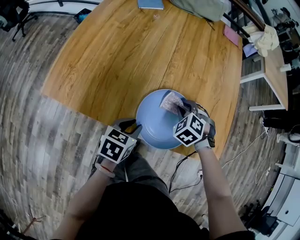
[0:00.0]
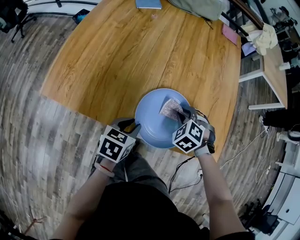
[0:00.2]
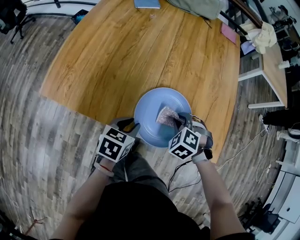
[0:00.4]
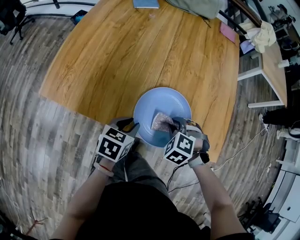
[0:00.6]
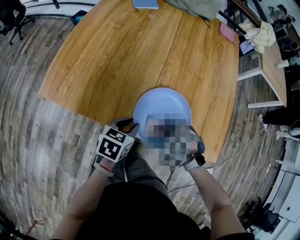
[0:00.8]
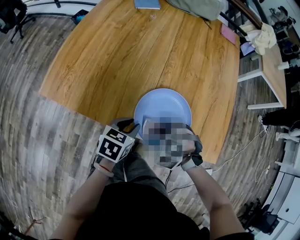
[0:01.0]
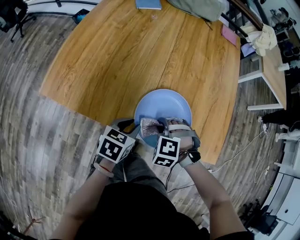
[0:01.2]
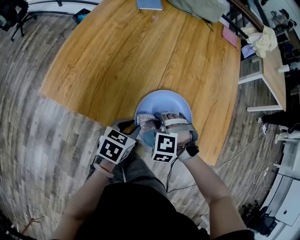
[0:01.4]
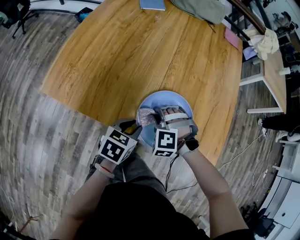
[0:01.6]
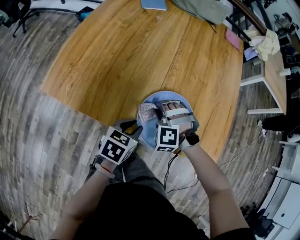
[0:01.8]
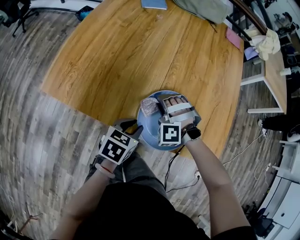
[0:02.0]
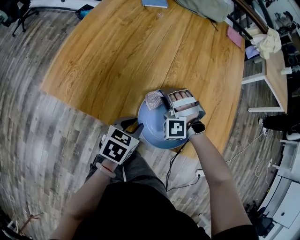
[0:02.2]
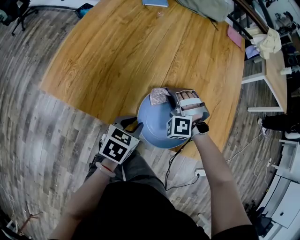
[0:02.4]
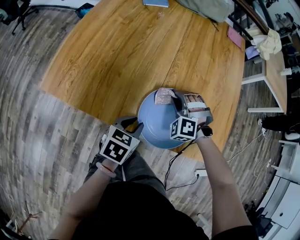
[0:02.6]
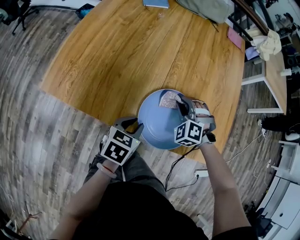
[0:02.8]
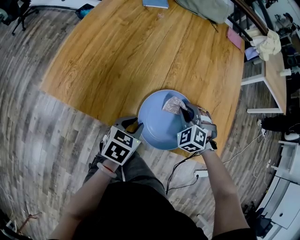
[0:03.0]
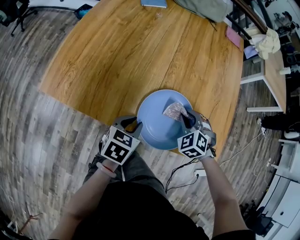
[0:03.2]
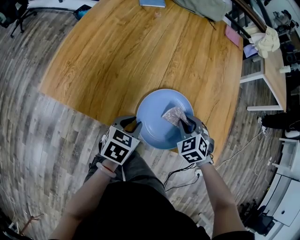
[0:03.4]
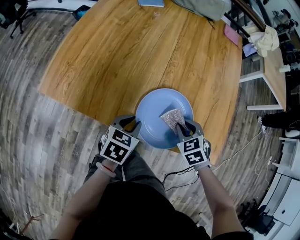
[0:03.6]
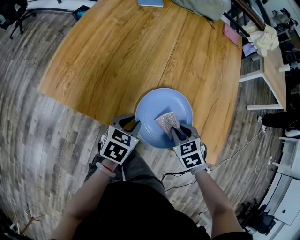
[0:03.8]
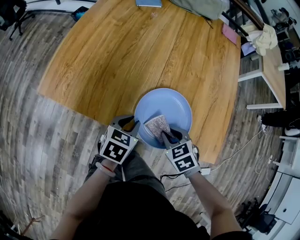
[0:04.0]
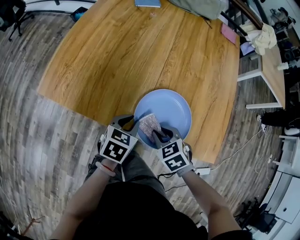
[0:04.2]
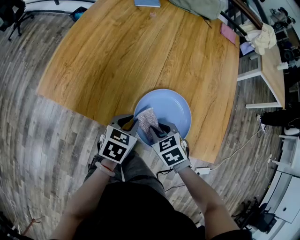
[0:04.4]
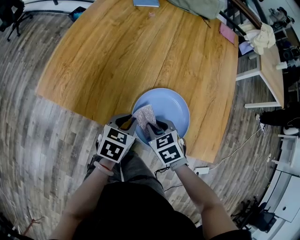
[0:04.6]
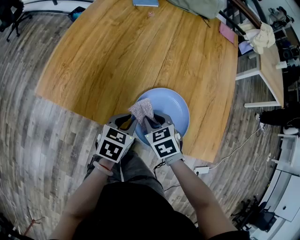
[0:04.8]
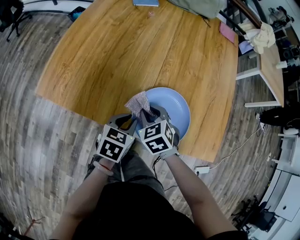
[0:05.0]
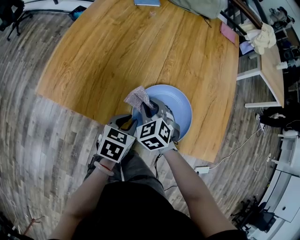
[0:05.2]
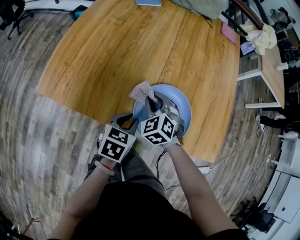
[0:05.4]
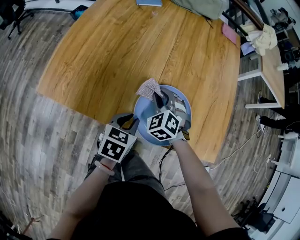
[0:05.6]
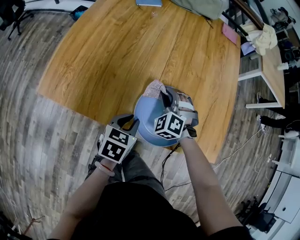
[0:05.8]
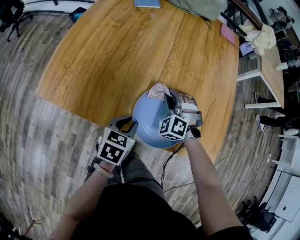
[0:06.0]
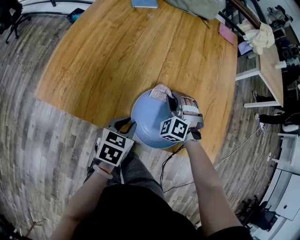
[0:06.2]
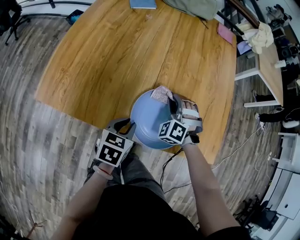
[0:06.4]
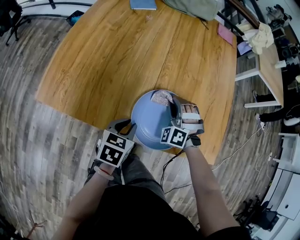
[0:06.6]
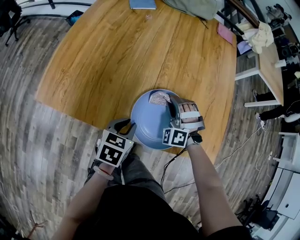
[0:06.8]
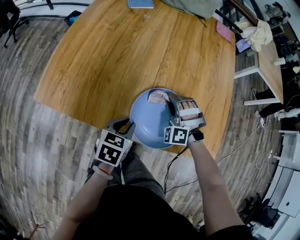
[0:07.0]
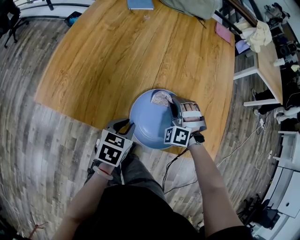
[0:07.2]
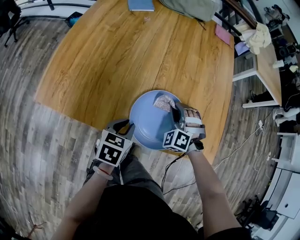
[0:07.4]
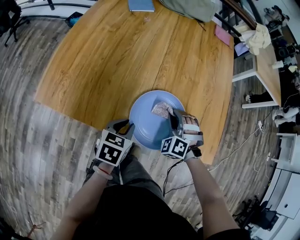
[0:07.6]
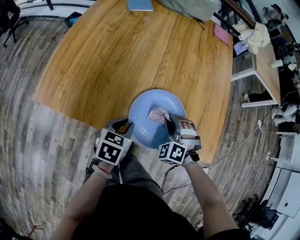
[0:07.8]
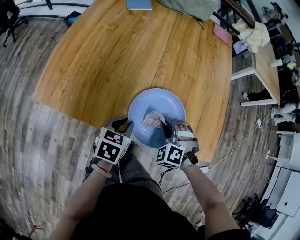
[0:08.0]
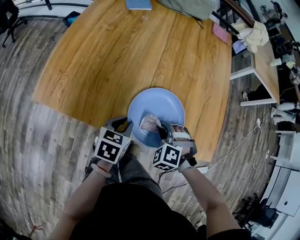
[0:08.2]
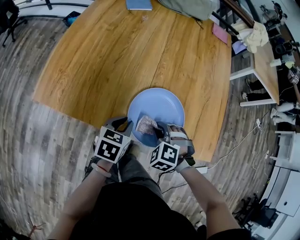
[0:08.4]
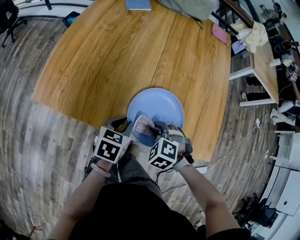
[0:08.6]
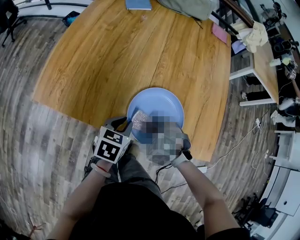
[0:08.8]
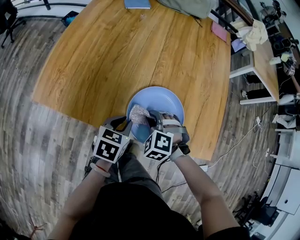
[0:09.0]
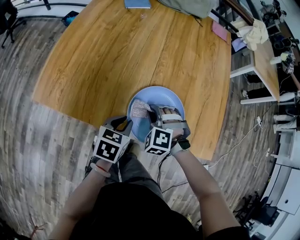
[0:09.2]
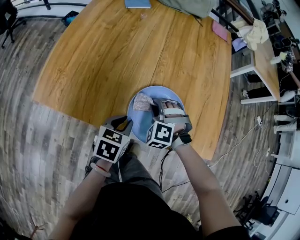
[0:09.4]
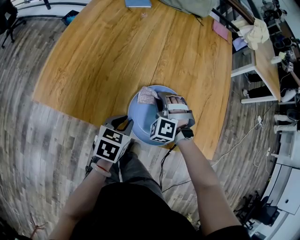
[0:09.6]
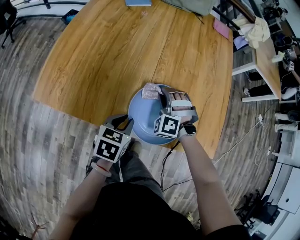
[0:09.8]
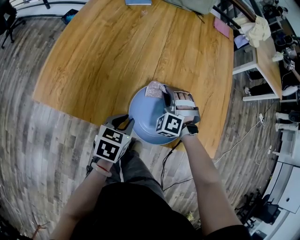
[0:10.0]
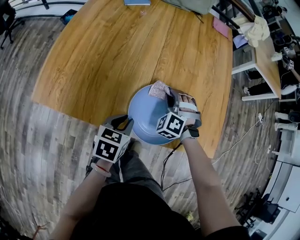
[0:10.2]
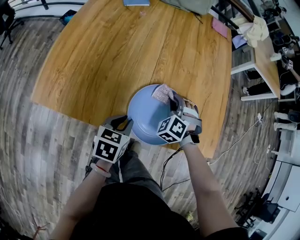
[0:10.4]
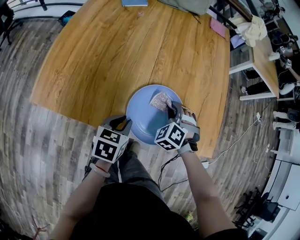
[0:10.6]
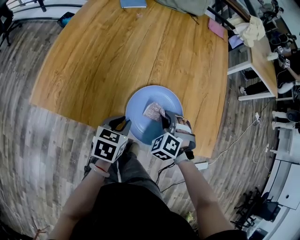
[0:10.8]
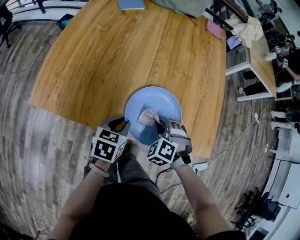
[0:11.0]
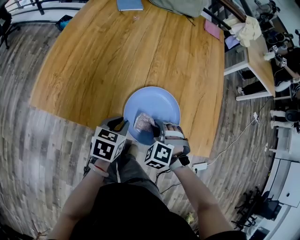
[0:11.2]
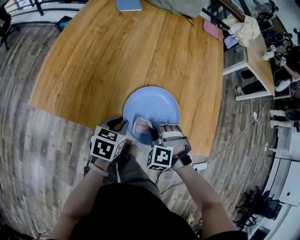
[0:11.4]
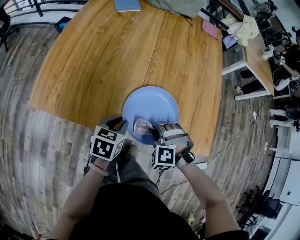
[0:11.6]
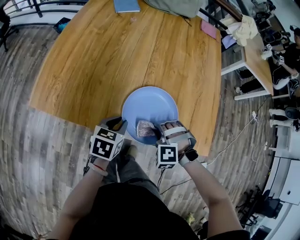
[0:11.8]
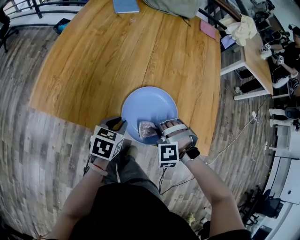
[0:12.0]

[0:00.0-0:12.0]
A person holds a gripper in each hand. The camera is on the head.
0.0 to 1.6 s: The right gripper shifts approximately 10 cm to the left and backward, and rotates about 30 degrees.
1.6 to 3.0 s: The right gripper moves to the right and forward, approximately 10 cm, and turns by roughly 20 degrees.
3.0 to 4.4 s: The right gripper travels backward and to the left by approximately 15 cm, and rolls clockwise, seen from behind, by some 40 degrees.
4.4 to 6.0 s: The right gripper moves forward, roughly 15 cm, and rotates around the line of its fingers by some 50 degrees, counterclockwise from behind.
6.0 to 7.6 s: The right gripper heads to the right, covering some 5 cm.
7.6 to 9.0 s: The right gripper is displaced to the left and backward by about 10 cm, and changes its angle by about 20 degrees.
9.0 to 10.4 s: The right gripper is displaced forward and to the right by approximately 10 cm, and turns by roughly 20 degrees.
10.4 to 12.0 s: The right gripper heads backward, covering some 15 cm, and changes its angle by about 40 degrees.

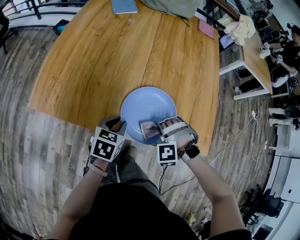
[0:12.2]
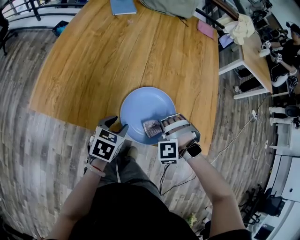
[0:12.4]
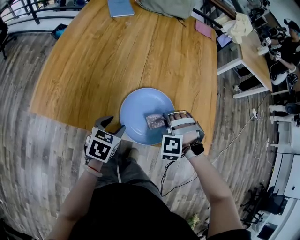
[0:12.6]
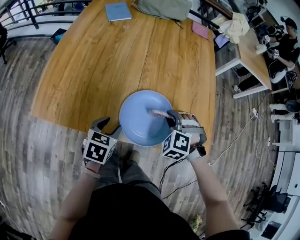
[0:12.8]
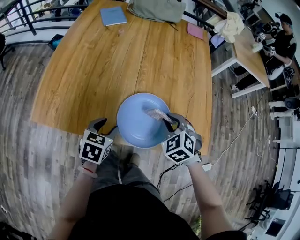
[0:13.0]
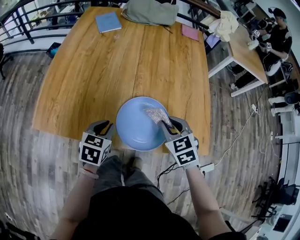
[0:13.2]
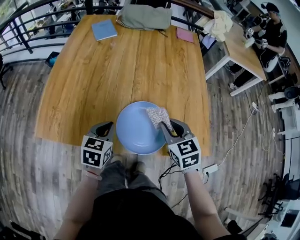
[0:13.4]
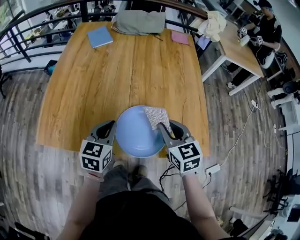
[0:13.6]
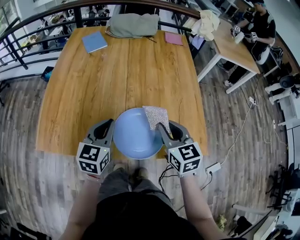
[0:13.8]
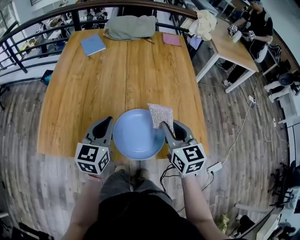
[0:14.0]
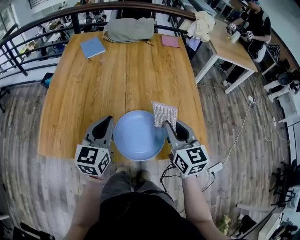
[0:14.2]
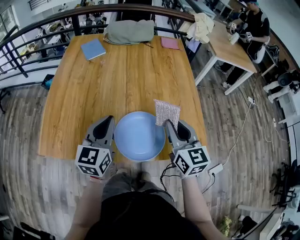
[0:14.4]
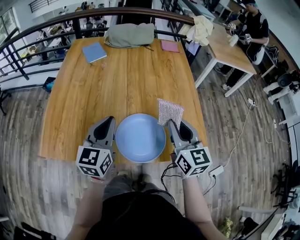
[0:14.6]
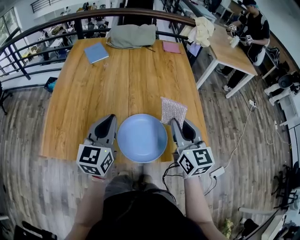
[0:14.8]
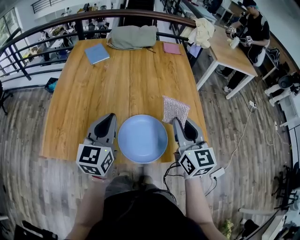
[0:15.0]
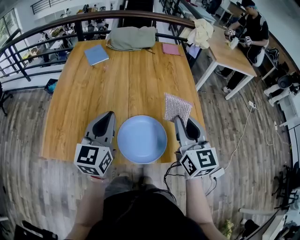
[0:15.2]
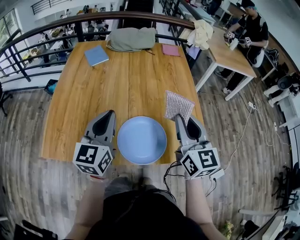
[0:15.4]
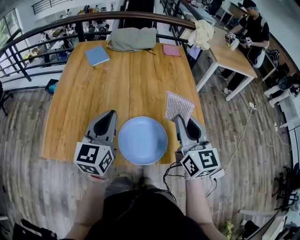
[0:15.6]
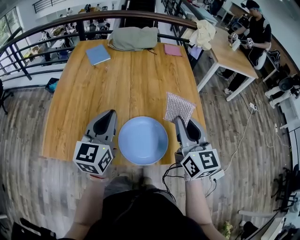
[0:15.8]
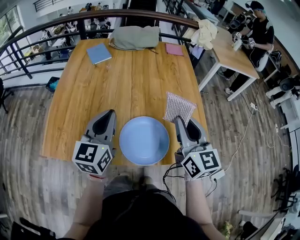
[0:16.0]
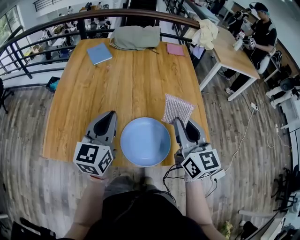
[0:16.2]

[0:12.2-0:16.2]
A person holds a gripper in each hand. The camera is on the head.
12.2 to 13.6 s: The left gripper moves upward and forward, approximately 10 cm, changes its angle by approximately 20 degrees, and opens, then closes once more. Meanwhile the right gripper goes some 15 cm upward, and rotates around the line of its fingers by roughly 90 degrees, clockwise from behind.
13.6 to 14.8 s: Both grippers travel together upward, approximately 10 cm. The left gripper changes its angle by about 20 degrees. Meanwhile the right gripper swivels approximately 20 degrees.
14.8 to 16.2 s: The grippers make only small movements.

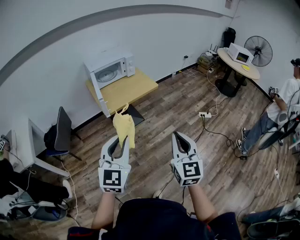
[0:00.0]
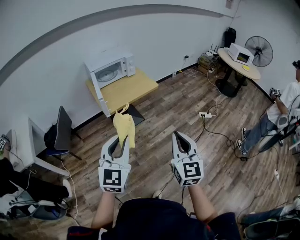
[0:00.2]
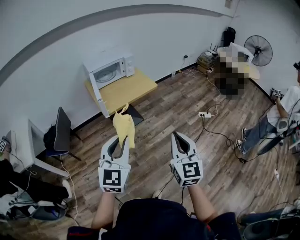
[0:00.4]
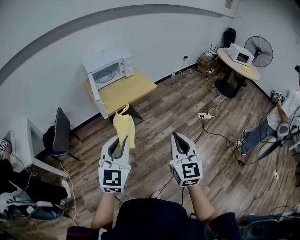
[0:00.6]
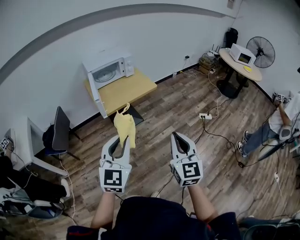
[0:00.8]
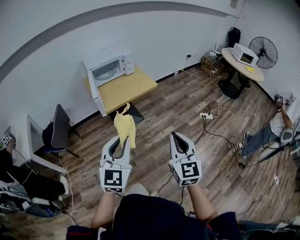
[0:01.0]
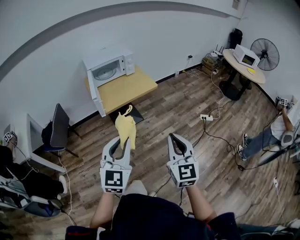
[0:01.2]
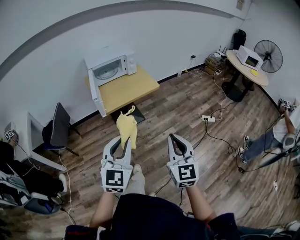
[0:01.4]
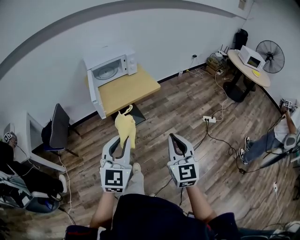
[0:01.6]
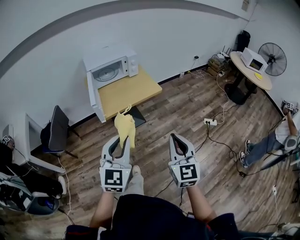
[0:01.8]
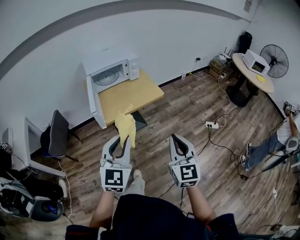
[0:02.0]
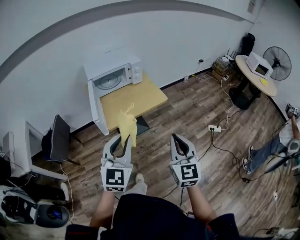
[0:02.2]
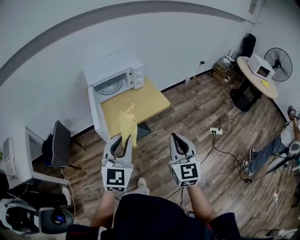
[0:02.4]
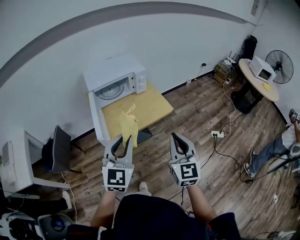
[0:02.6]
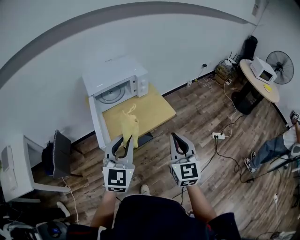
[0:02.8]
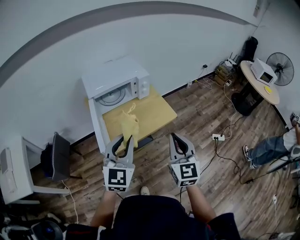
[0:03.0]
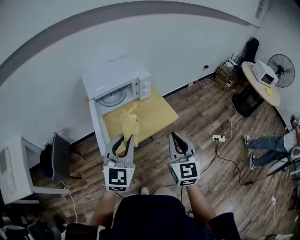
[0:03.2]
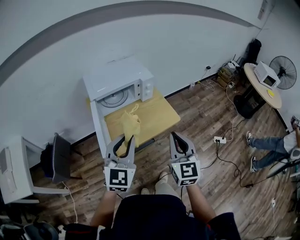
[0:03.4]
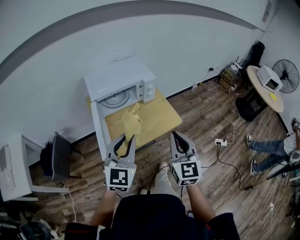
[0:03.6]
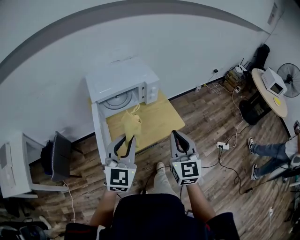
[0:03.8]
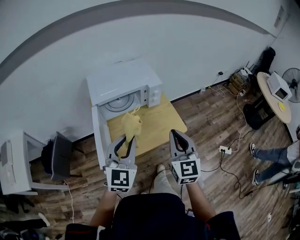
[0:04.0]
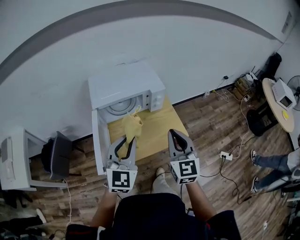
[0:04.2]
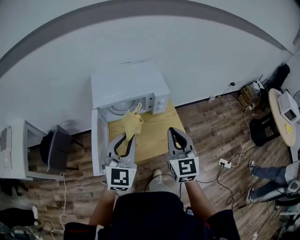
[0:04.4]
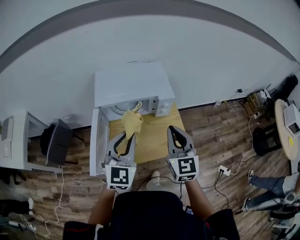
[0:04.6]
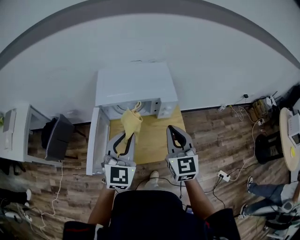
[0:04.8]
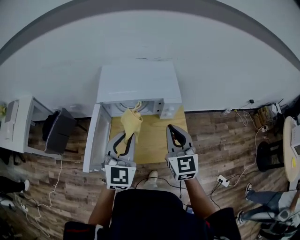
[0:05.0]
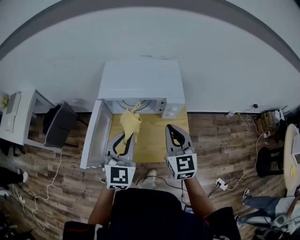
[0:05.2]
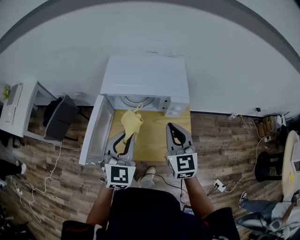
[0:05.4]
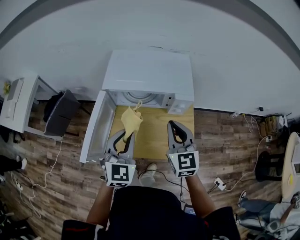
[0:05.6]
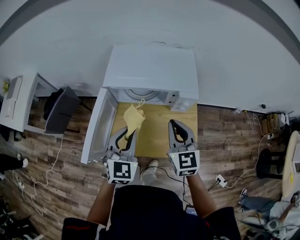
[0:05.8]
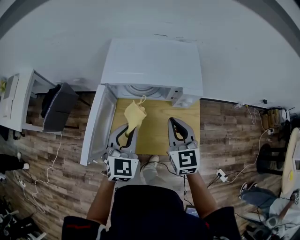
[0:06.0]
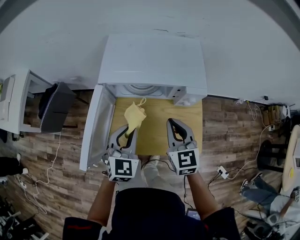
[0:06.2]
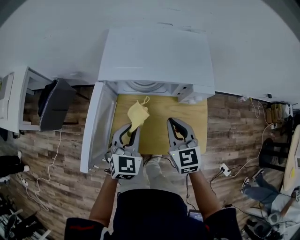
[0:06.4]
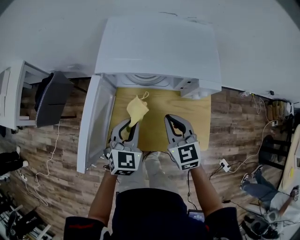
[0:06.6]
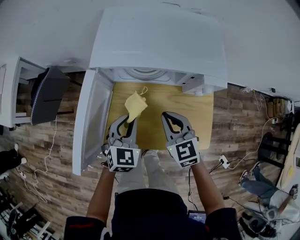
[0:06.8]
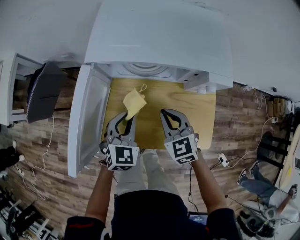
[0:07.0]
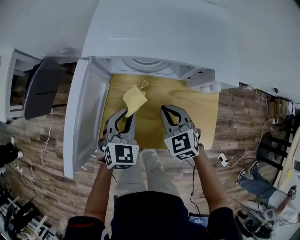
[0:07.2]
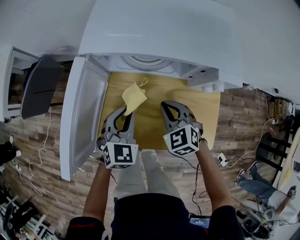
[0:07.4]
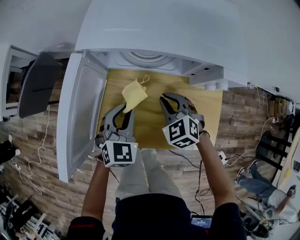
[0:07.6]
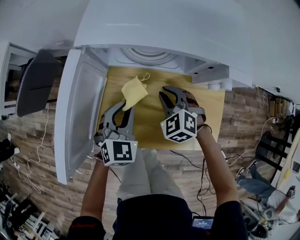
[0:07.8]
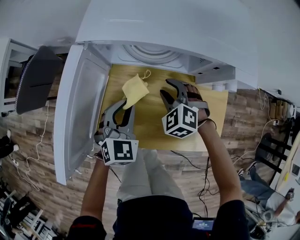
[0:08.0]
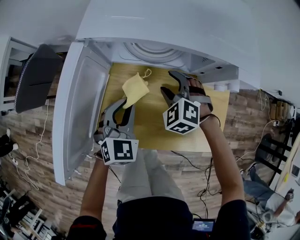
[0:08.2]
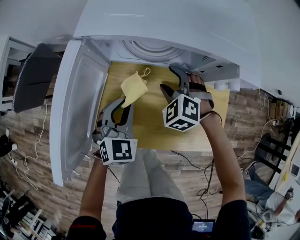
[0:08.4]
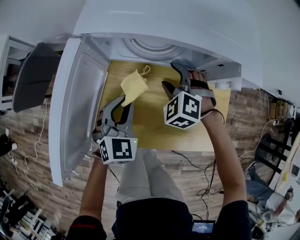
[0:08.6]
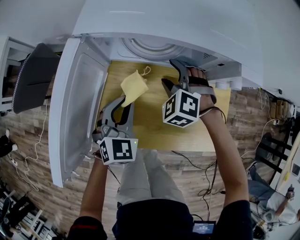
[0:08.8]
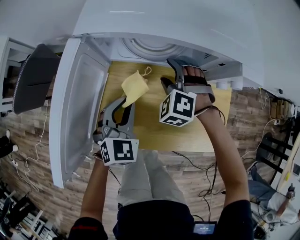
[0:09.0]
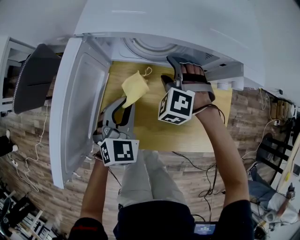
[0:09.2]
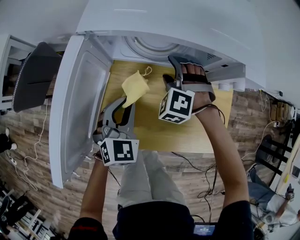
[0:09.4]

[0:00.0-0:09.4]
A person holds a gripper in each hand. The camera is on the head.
0.0 to 1.6 s: The left gripper travels forward and to the right by about 10 cm, while the right gripper travels forward by approximately 10 cm.
1.6 to 3.2 s: Both grippers move forward, about 35 cm.
3.2 to 4.8 s: Both grippers move forward, some 25 cm. The left gripper rotates approximately 20 degrees; the right gripper changes its angle by approximately 30 degrees.
4.8 to 6.2 s: The left gripper is displaced downward by about 15 cm; the right gripper is displaced downward and forward by approximately 15 cm.
6.2 to 7.8 s: The grippers both shift downward by some 20 cm. The right gripper rotates approximately 50 degrees.
7.8 to 9.4 s: The right gripper travels forward by about 5 cm, rotates some 30 degrees, and opens up.
